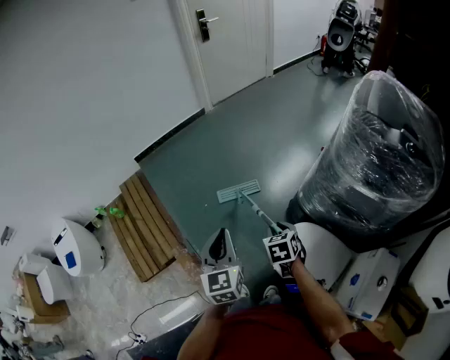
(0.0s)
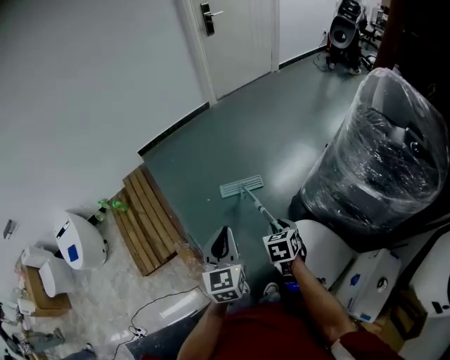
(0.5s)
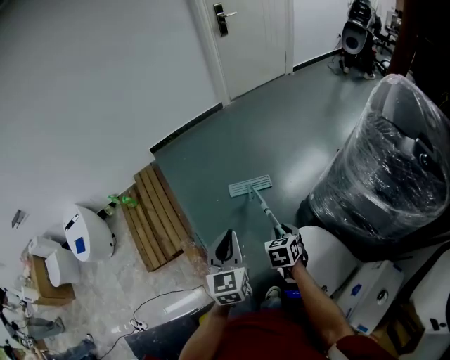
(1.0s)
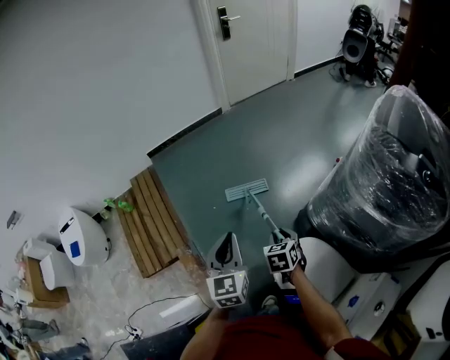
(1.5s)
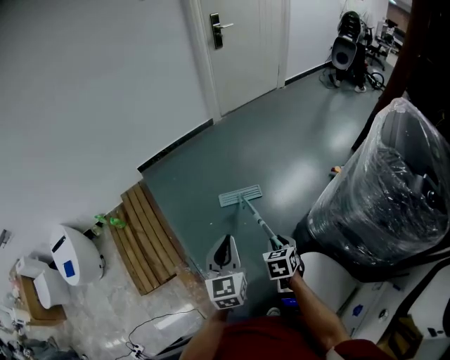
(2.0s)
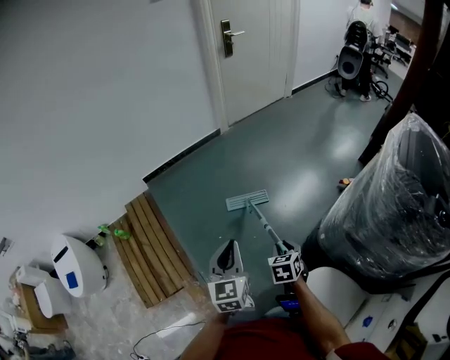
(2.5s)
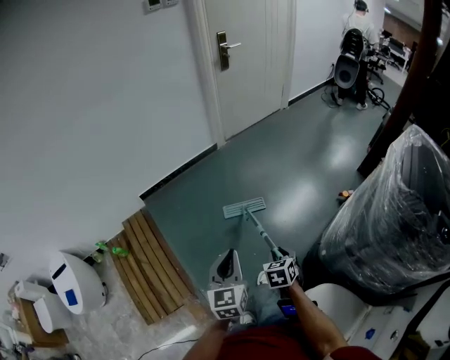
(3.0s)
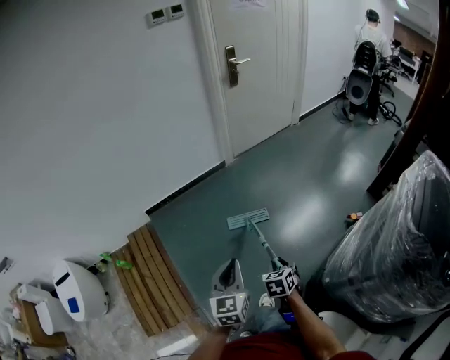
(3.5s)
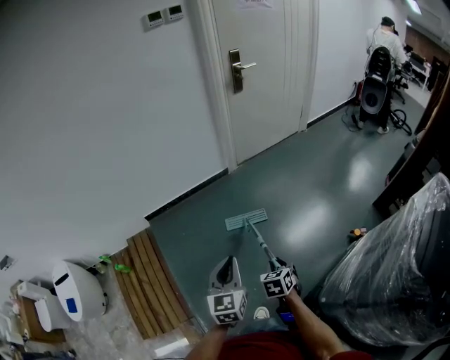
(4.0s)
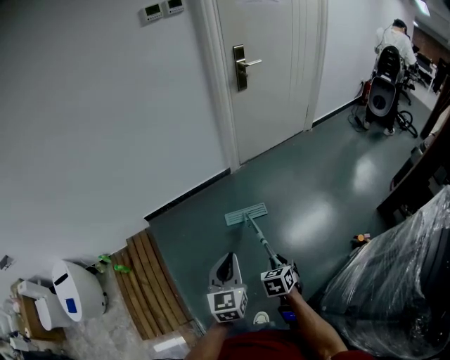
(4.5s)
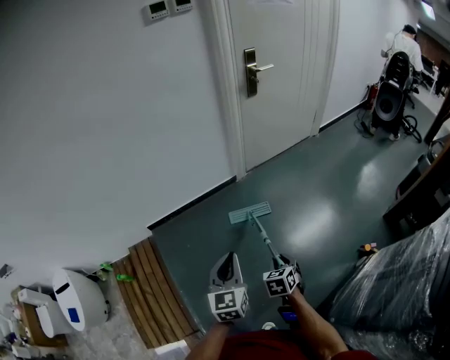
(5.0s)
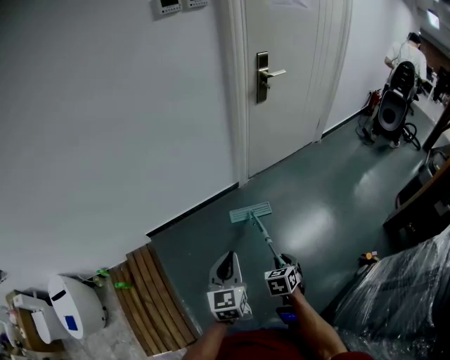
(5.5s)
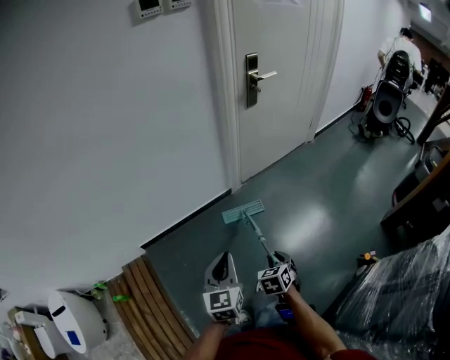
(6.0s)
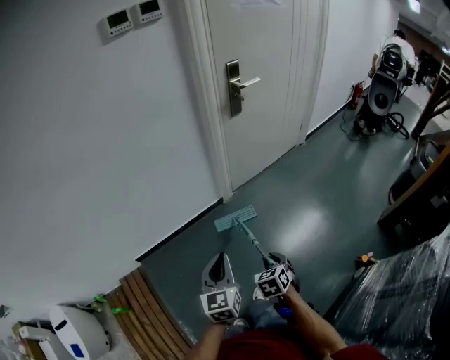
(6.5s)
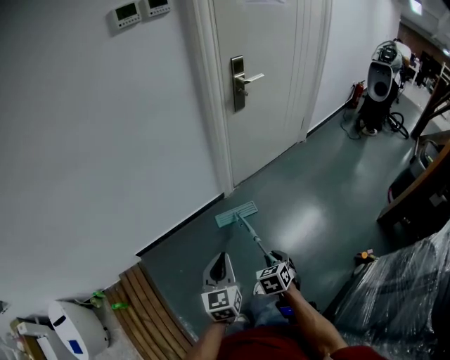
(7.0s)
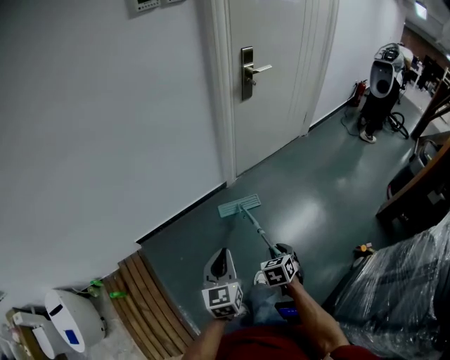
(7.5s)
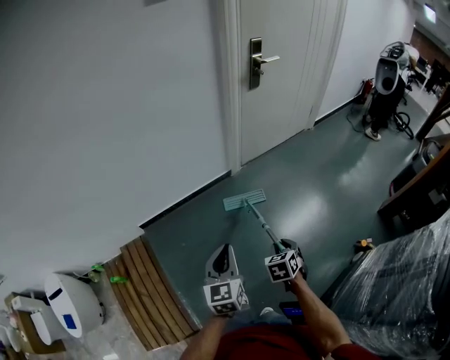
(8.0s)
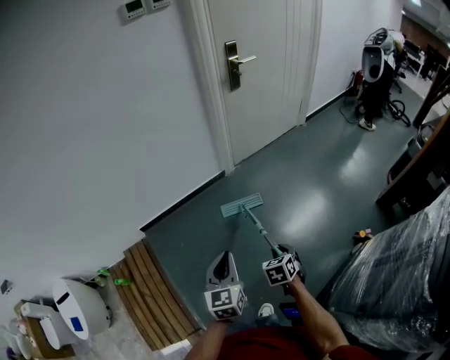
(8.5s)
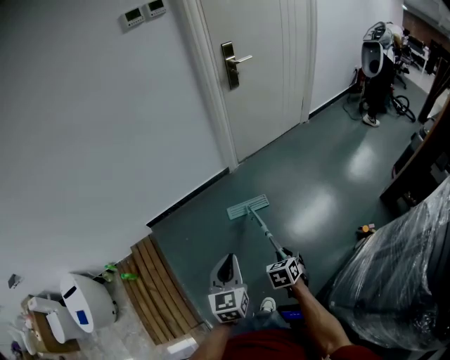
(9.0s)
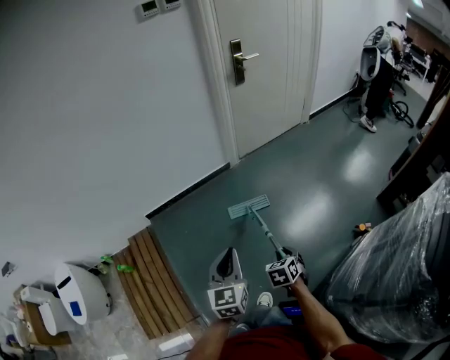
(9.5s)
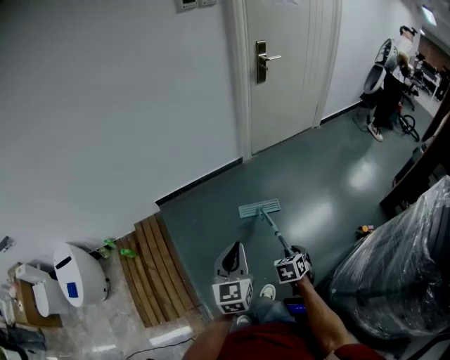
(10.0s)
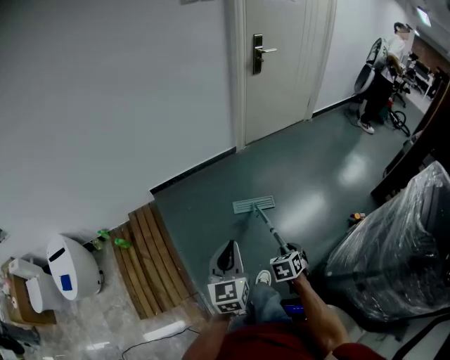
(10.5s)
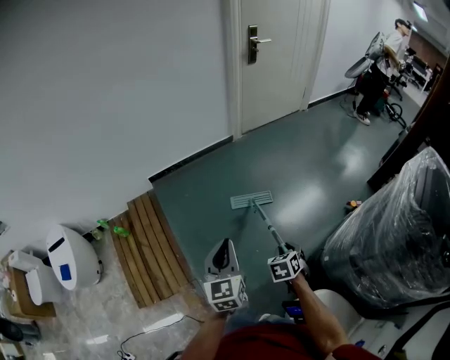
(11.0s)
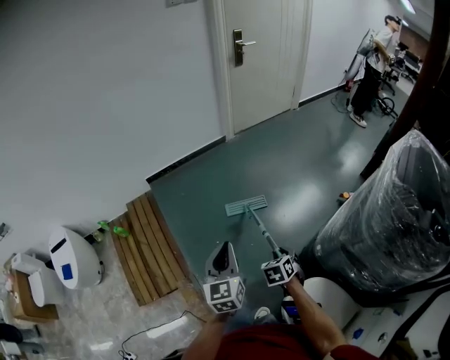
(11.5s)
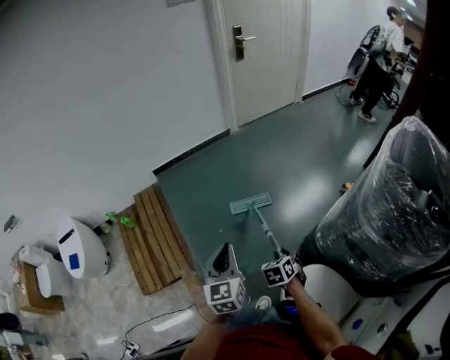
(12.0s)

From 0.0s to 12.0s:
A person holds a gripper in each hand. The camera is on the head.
From 0.0s to 2.0s: Both grippers travel together forward, approximately 15 cm.
From 2.0s to 4.0s: The two grippers go roughly 40 cm forward.
From 4.0s to 6.0s: The two grippers go approximately 35 cm forward.
From 6.0s to 8.0s: The two grippers go roughly 5 cm backward.
From 8.0s to 10.0s: Both grippers move backward, approximately 30 cm.
From 10.0s to 12.0s: The two grippers go some 35 cm backward.

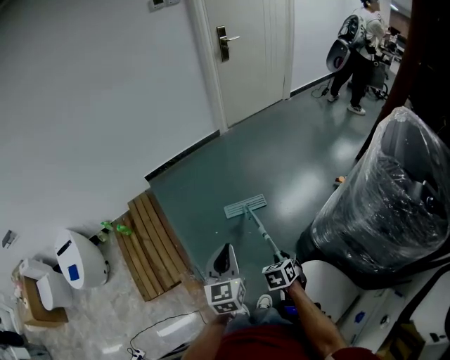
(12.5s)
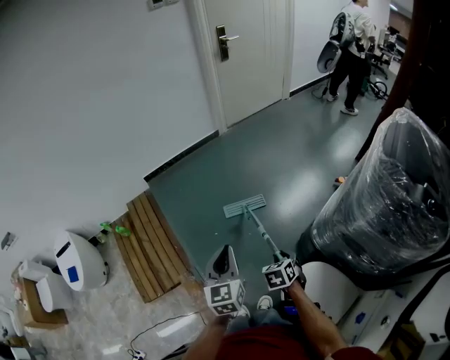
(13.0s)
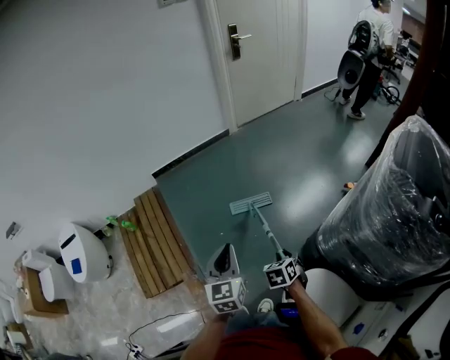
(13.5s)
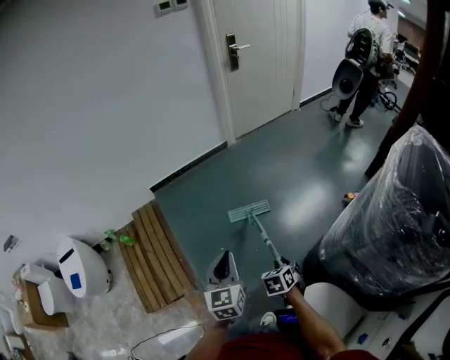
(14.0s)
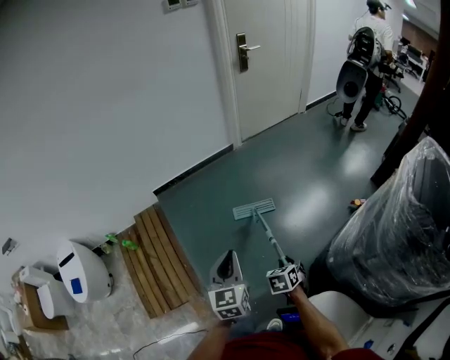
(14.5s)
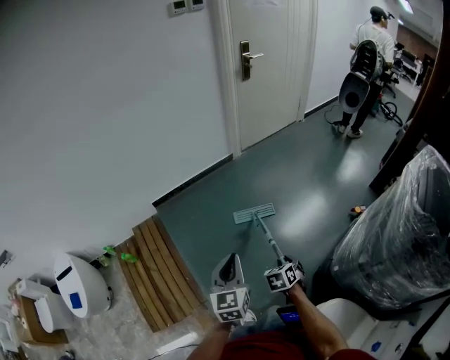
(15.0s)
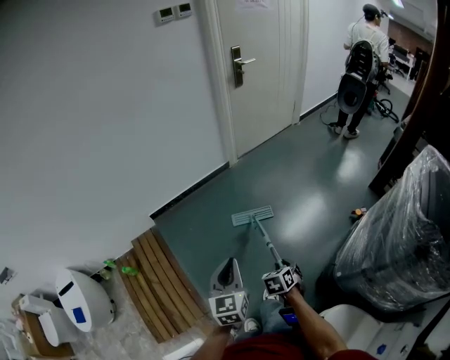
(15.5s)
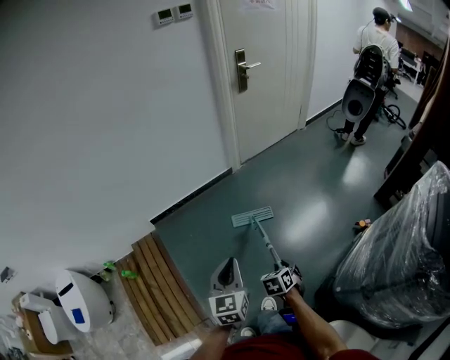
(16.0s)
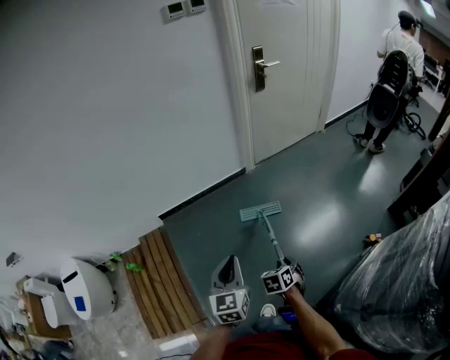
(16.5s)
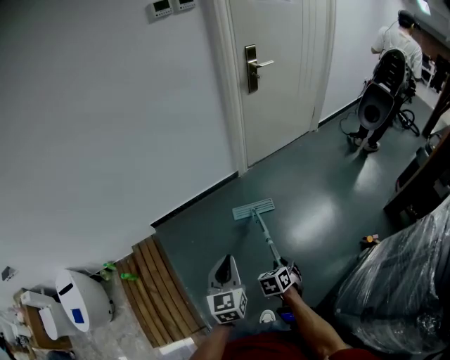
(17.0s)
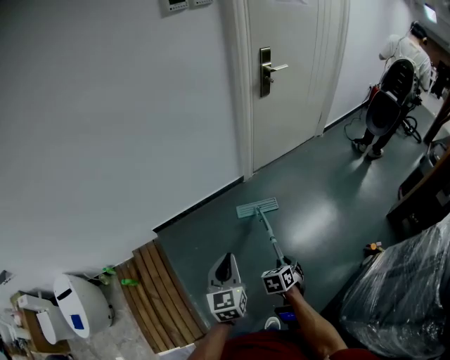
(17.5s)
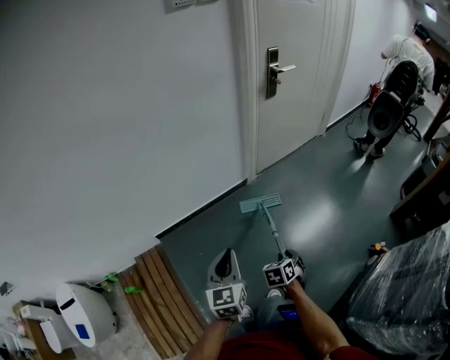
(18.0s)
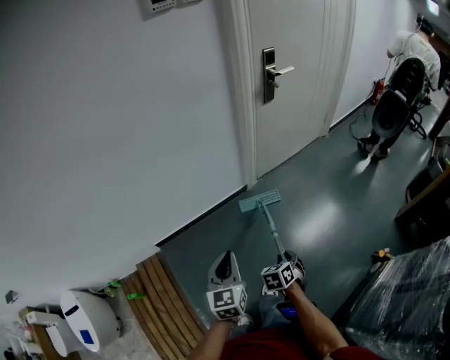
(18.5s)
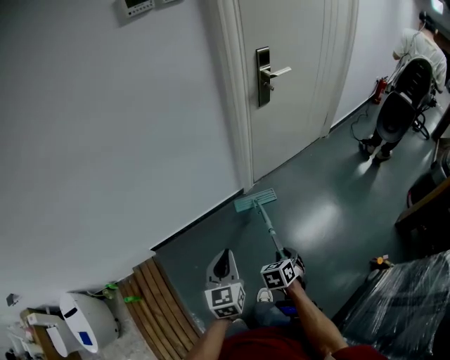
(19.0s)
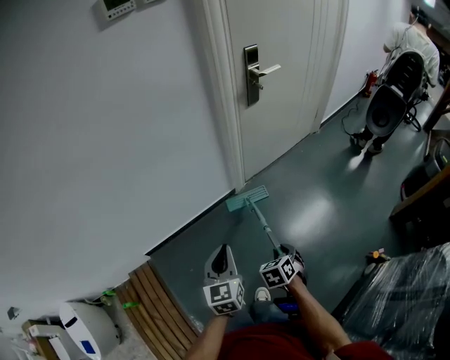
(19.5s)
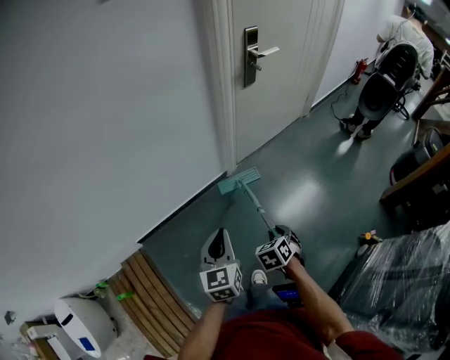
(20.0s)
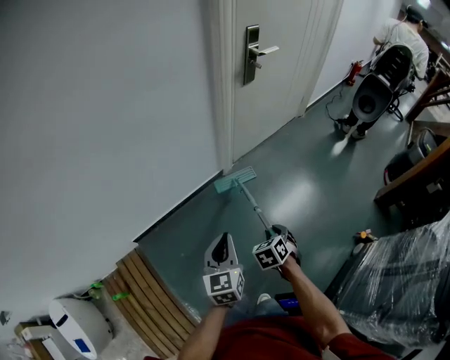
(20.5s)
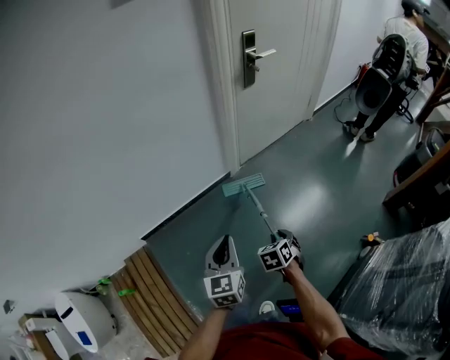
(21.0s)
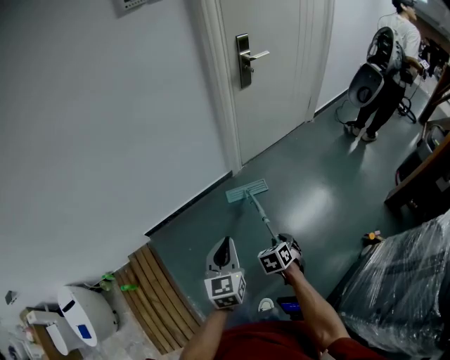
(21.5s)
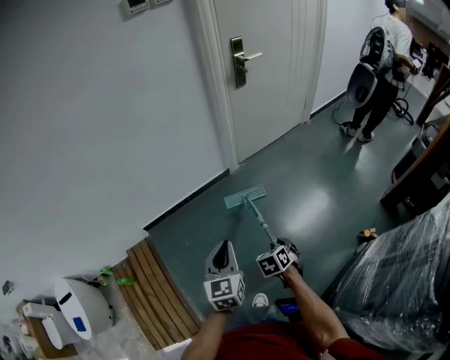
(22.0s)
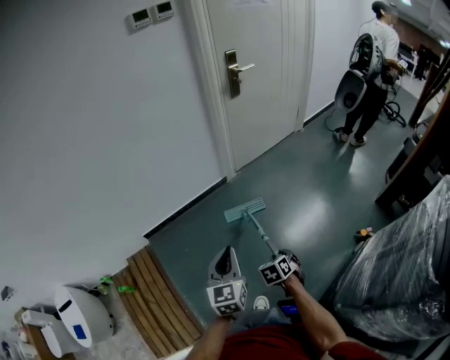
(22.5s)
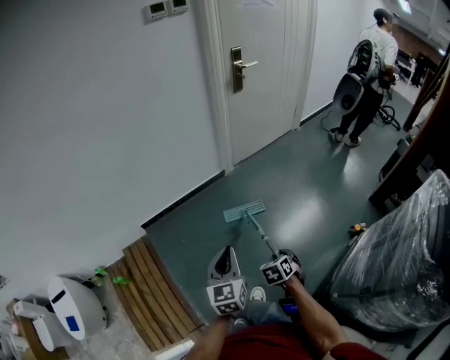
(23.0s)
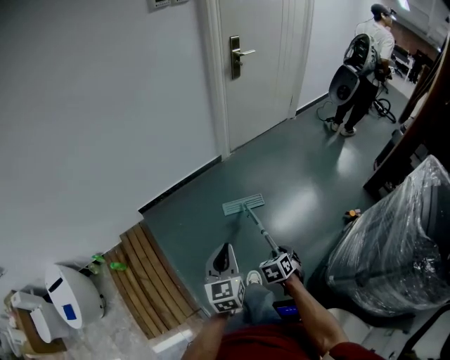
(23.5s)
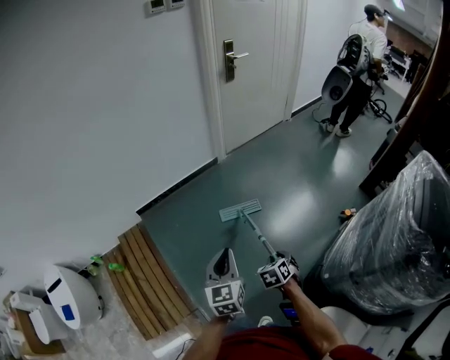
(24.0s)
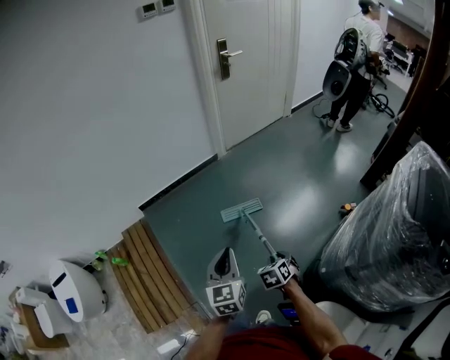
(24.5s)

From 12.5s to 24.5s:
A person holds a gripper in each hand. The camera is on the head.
From 12.5s to 14.5s: Both grippers move forward and to the left, approximately 20 cm.
From 14.5s to 16.5s: Both grippers travel together forward, roughly 30 cm.
From 16.5s to 18.5s: The grippers both shift forward and to the left by approximately 35 cm.
From 18.5s to 20.5s: Both grippers move forward, about 10 cm.
From 20.5s to 22.5s: The grippers both shift backward and to the right by roughly 30 cm.
From 22.5s to 24.5s: The grippers both shift backward by approximately 30 cm.

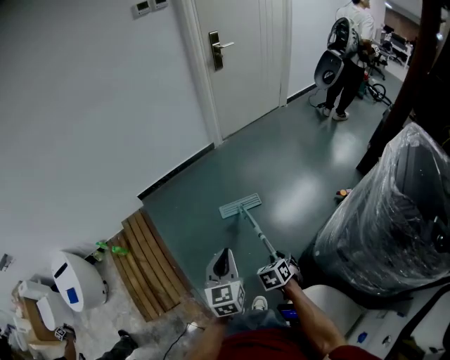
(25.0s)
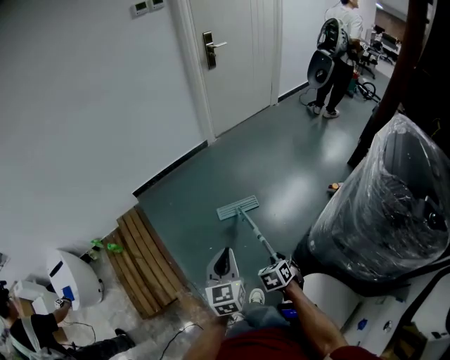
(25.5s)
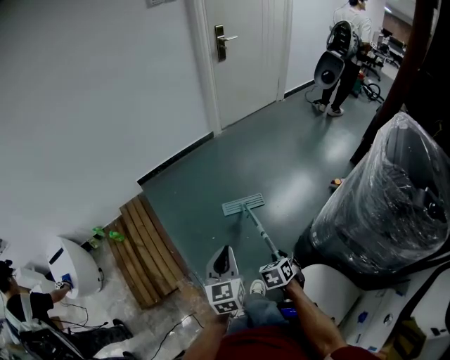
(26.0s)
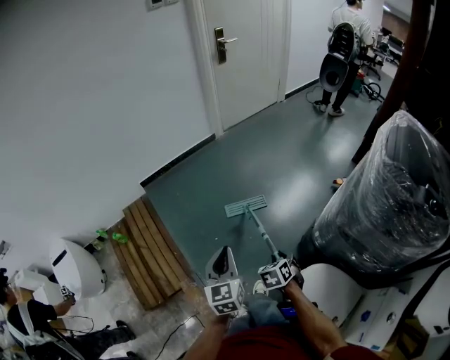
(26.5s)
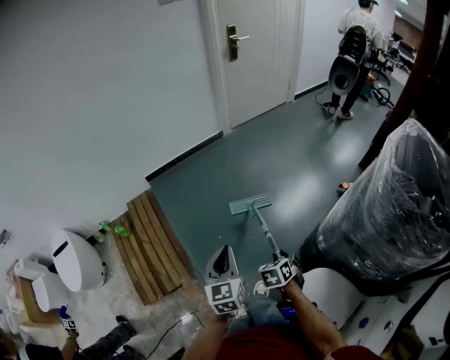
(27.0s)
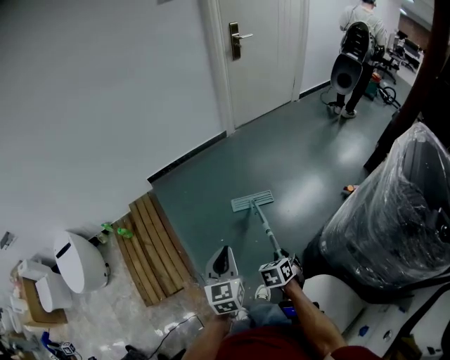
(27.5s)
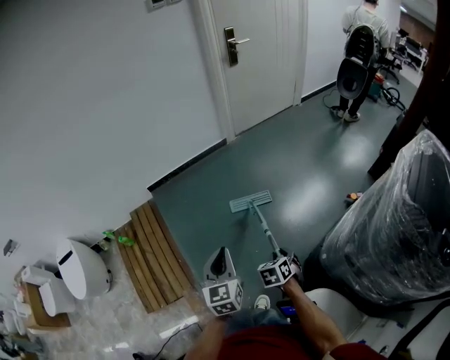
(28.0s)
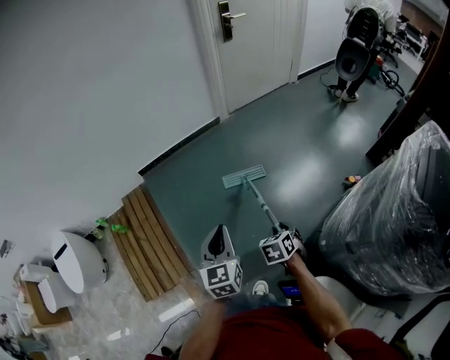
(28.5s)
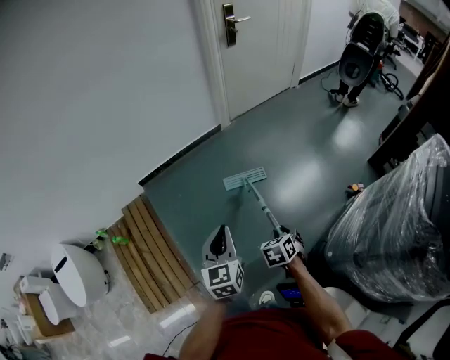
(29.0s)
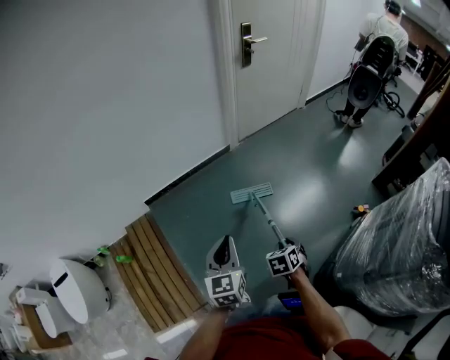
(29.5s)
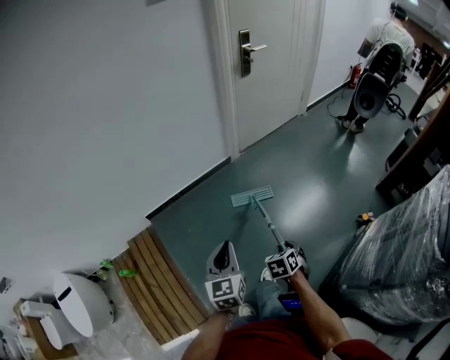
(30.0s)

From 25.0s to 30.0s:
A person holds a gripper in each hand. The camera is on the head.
From 25.0s to 27.5s: Both grippers travel together backward, about 10 cm.
From 27.5s to 30.0s: The pair of grippers is taken forward, about 40 cm.
